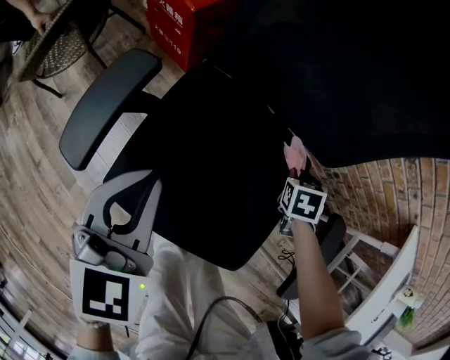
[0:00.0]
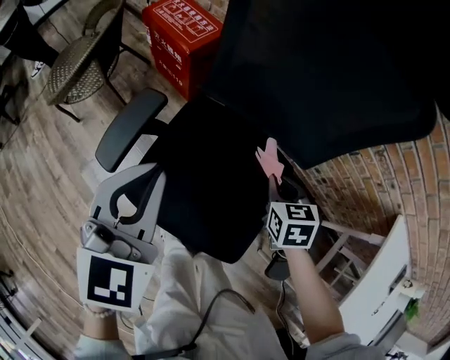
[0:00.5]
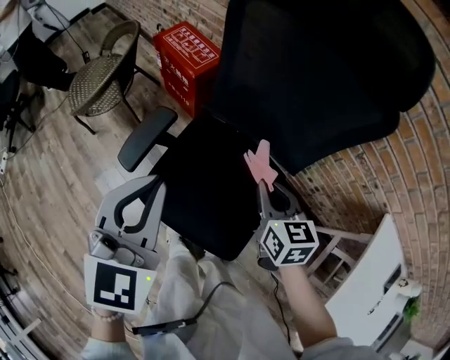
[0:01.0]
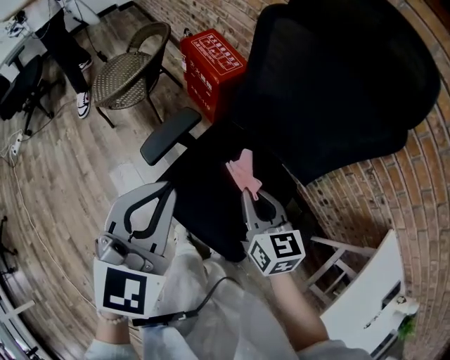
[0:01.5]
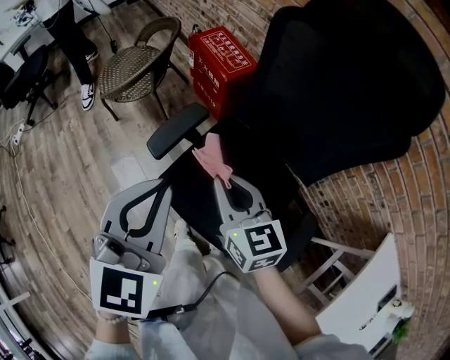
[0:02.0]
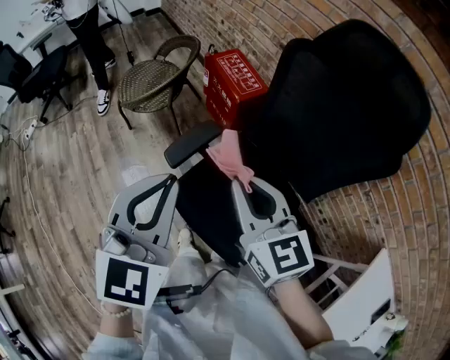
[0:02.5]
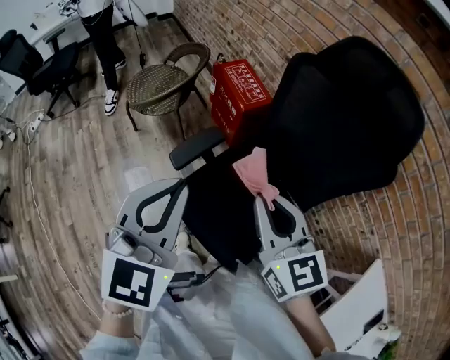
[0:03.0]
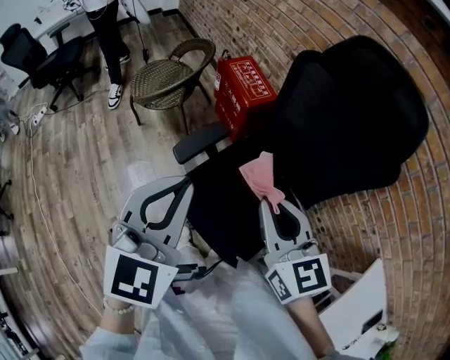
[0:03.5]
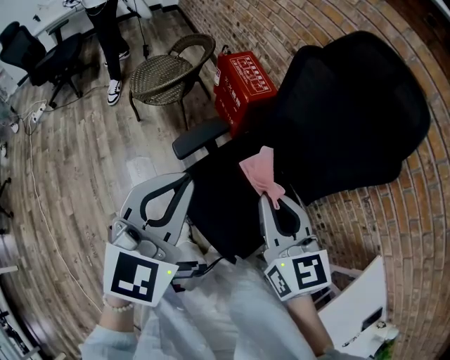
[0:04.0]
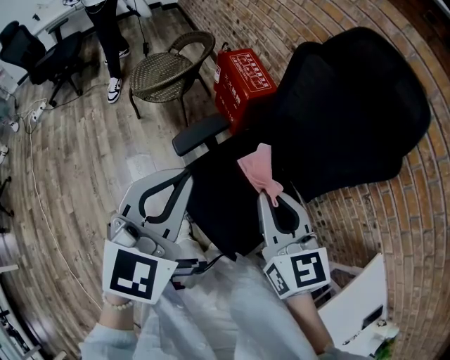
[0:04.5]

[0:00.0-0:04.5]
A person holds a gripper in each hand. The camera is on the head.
0.0 to 2.0 s: The two grippers go about 35 cm upward. The right gripper tips its fingers upward by approximately 50 degrees.
2.0 to 4.5 s: The left gripper is displaced upward by about 5 cm, while the right gripper moves upward and backward, approximately 15 cm.

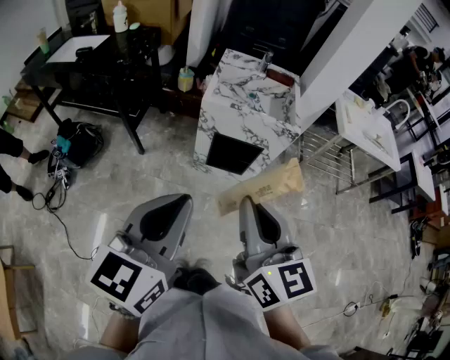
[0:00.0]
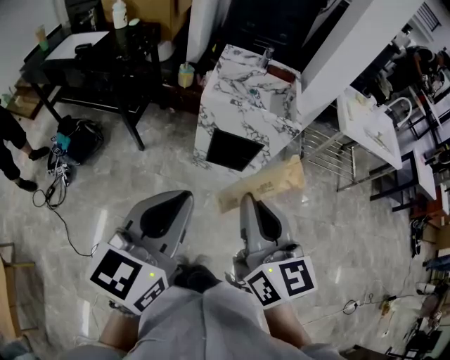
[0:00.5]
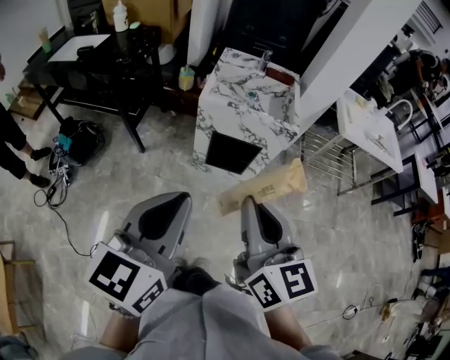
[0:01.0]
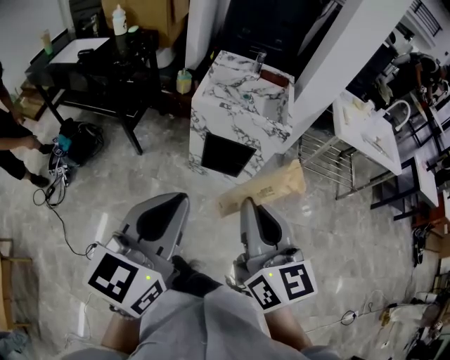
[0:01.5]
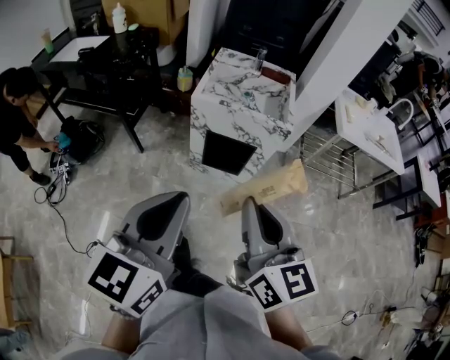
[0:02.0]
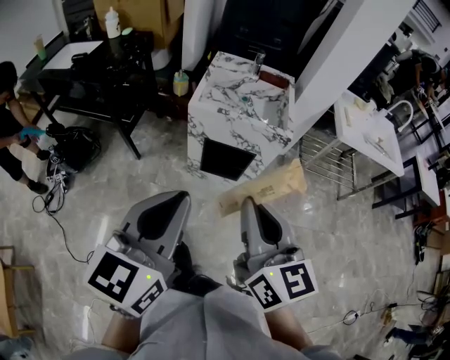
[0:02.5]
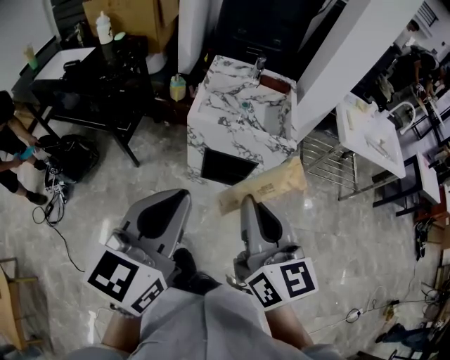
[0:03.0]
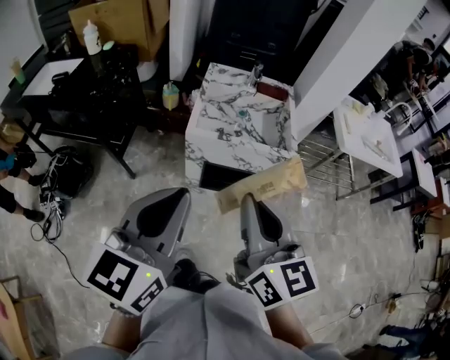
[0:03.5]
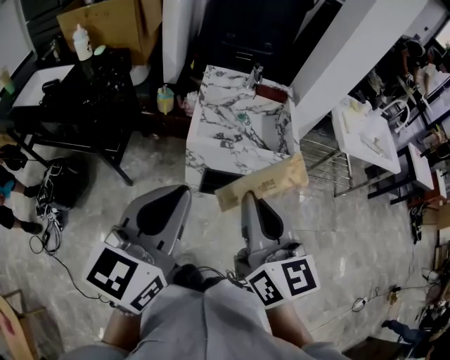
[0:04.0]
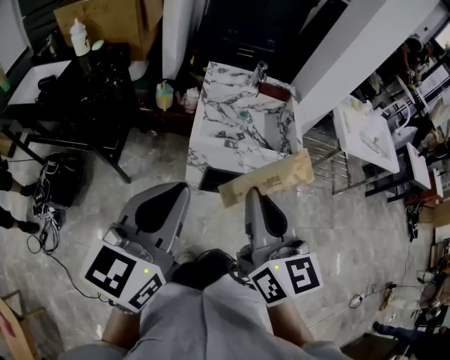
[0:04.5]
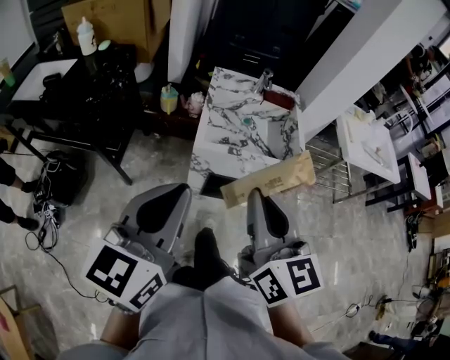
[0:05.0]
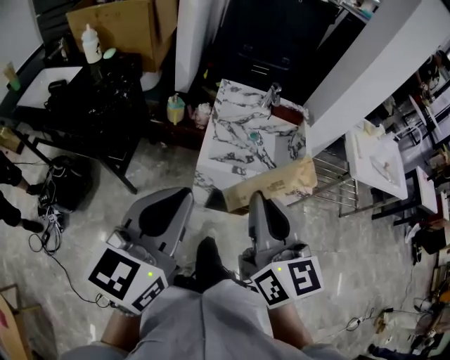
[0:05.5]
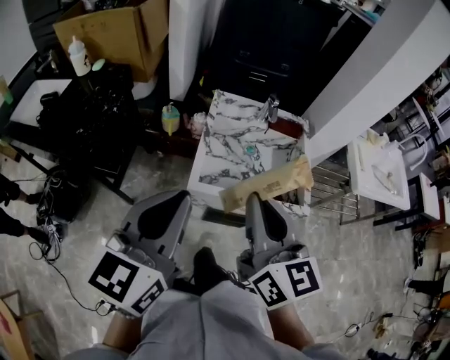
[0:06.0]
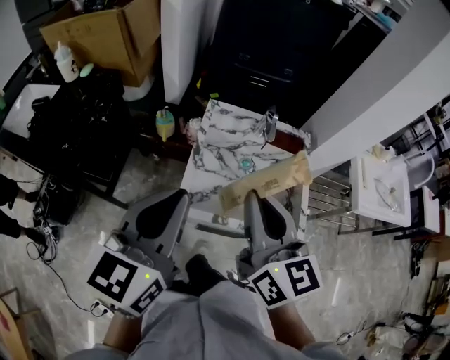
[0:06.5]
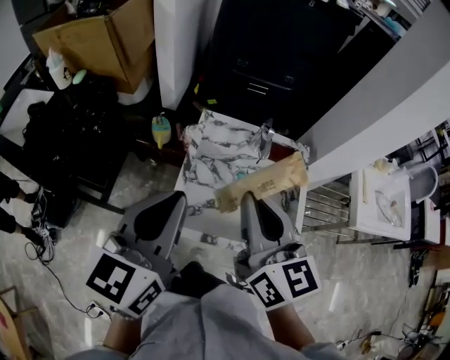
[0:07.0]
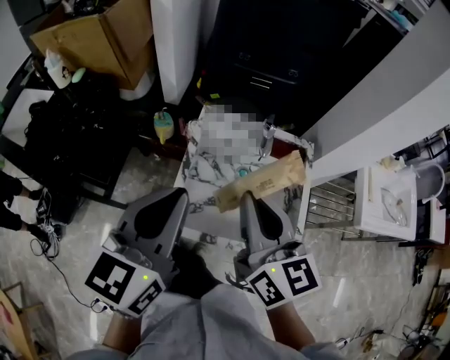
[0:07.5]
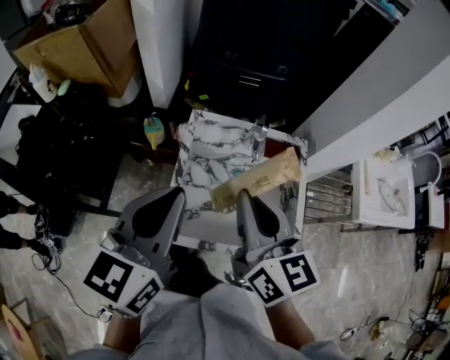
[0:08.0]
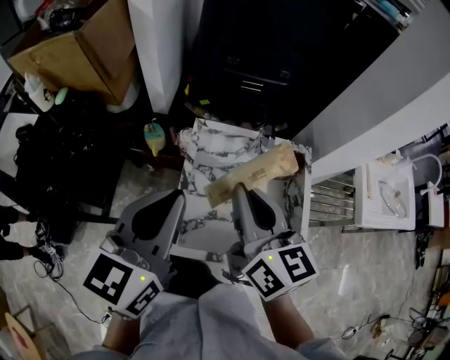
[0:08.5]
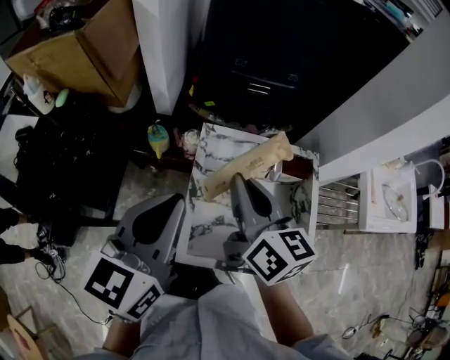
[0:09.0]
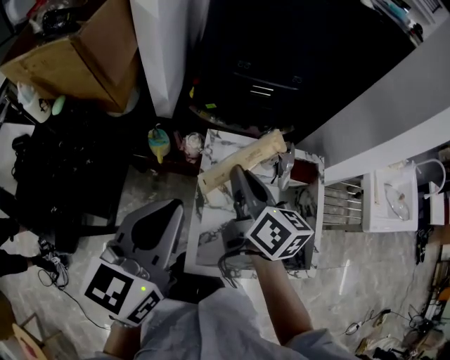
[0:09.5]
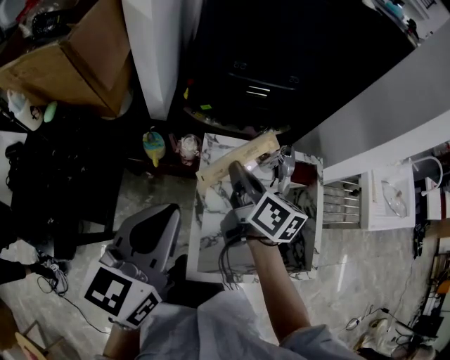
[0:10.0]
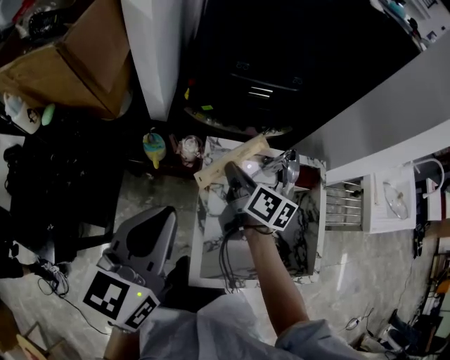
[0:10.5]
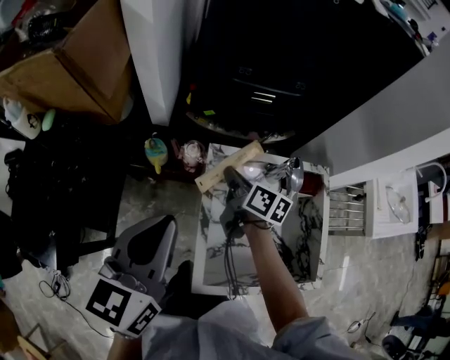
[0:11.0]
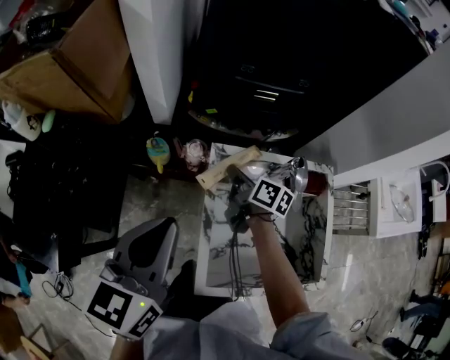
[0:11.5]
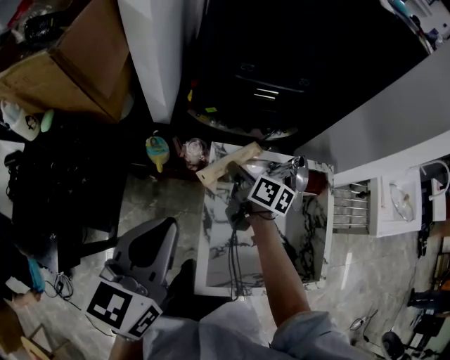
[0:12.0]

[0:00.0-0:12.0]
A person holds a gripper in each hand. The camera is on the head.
0.0 to 2.0 s: Both grippers move to the right, about 10 cm.
2.0 to 4.0 s: Both grippers move forward and to the left, about 25 cm.
4.0 to 6.0 s: Both grippers move forward, about 20 cm.
6.0 to 8.0 s: The grippers both shift forward by about 20 cm.
8.0 to 10.0 s: The right gripper heads forward, downward and to the left, covering roughly 25 cm, and rotates some 30 degrees, while the left gripper shifts about 15 cm to the left and forward.
10.0 to 12.0 s: The right gripper moves downward and forward, some 15 cm.

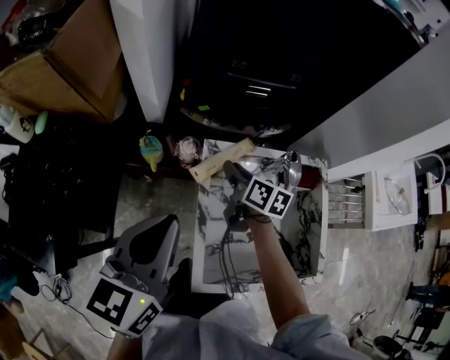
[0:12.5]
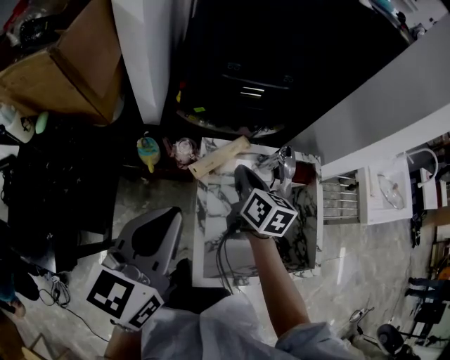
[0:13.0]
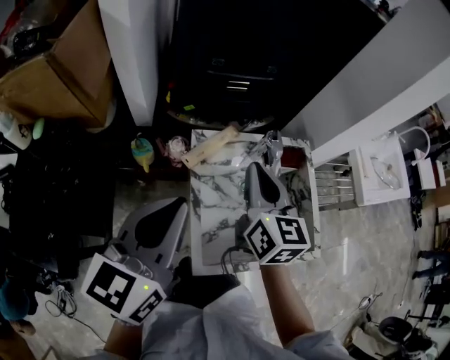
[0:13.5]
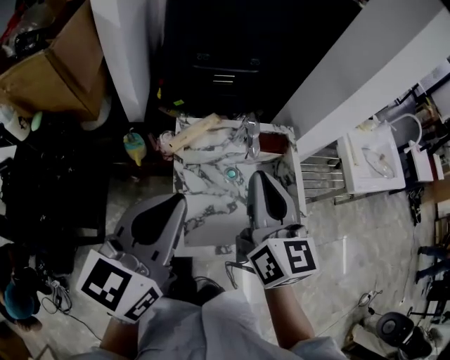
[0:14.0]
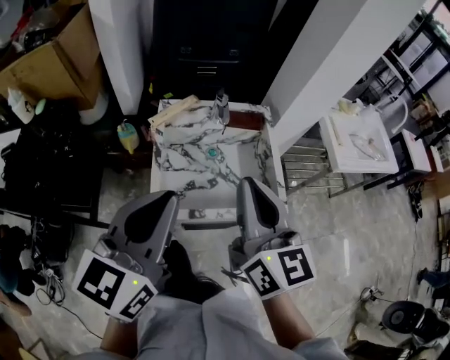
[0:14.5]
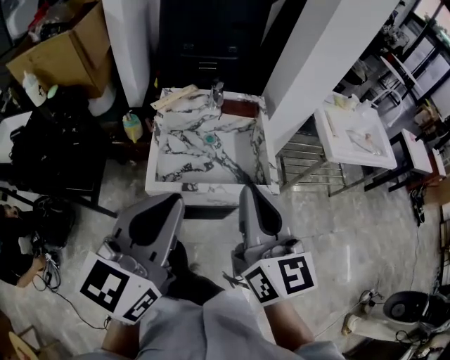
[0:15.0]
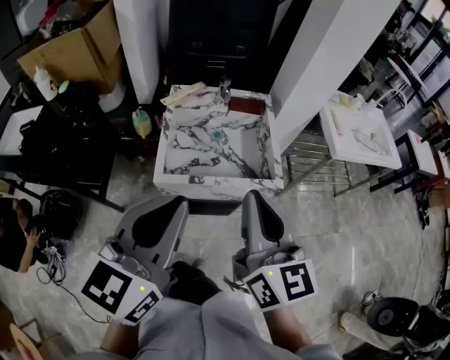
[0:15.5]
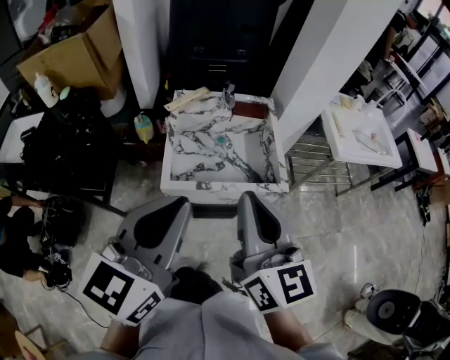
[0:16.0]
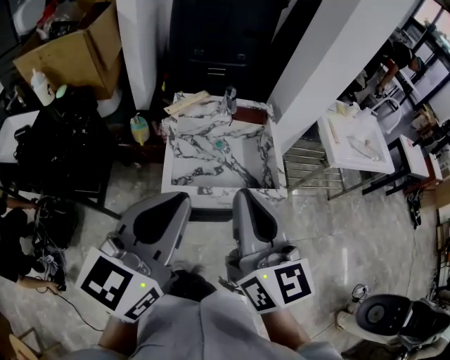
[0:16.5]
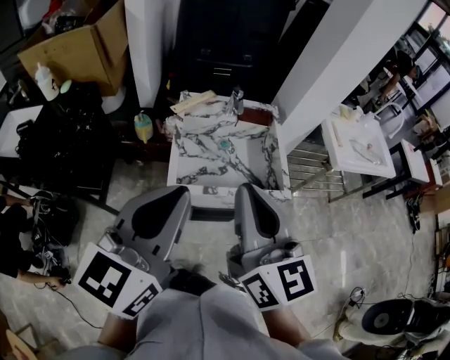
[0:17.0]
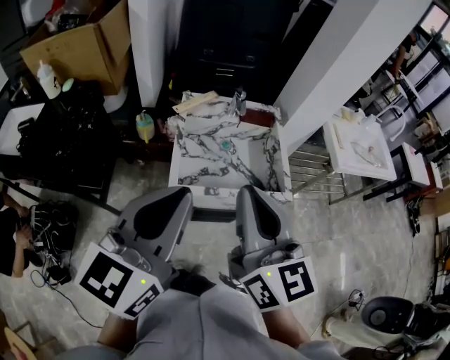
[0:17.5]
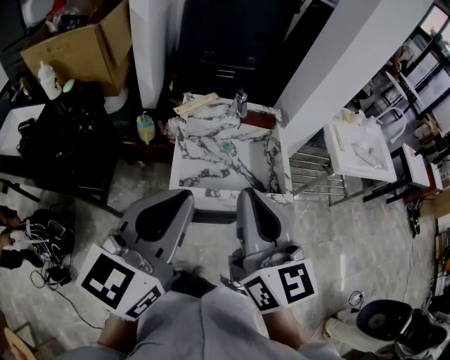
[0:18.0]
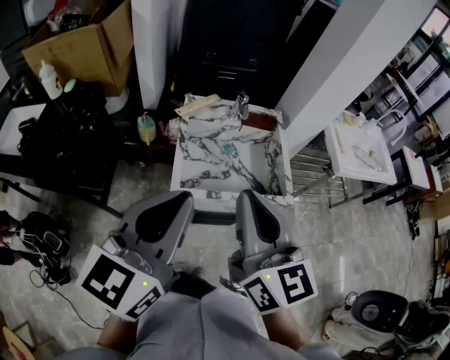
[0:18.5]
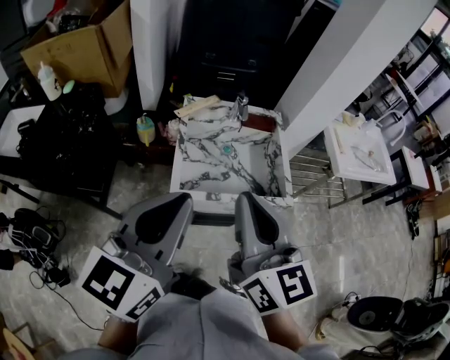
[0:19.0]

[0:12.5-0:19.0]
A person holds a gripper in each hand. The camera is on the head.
12.5 to 14.5 s: The left gripper is displaced backward and to the right by approximately 25 cm; the right gripper goes roughly 50 cm backward, upward and to the right, changes its angle by about 40 degrees, and closes.
14.5 to 17.0 s: The left gripper shifts approximately 10 cm backward; the right gripper is displaced backward and upward by roughly 15 cm.
17.0 to 19.0 s: The grippers stay close to where they were, moving slightly.

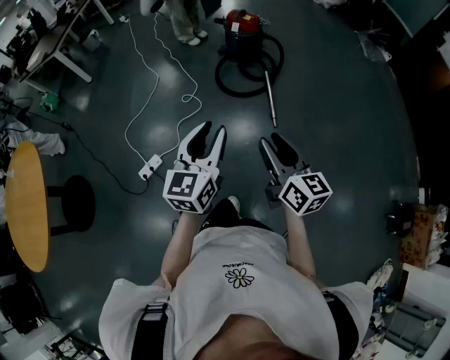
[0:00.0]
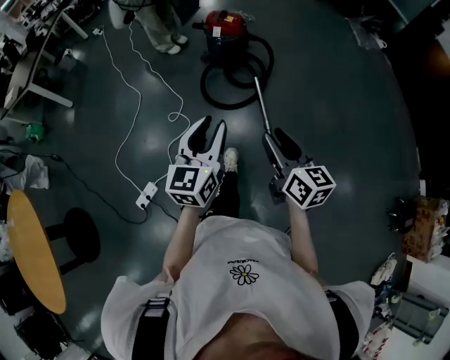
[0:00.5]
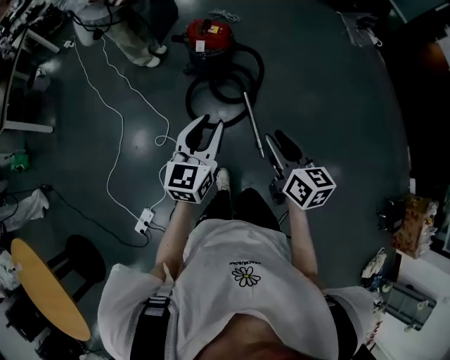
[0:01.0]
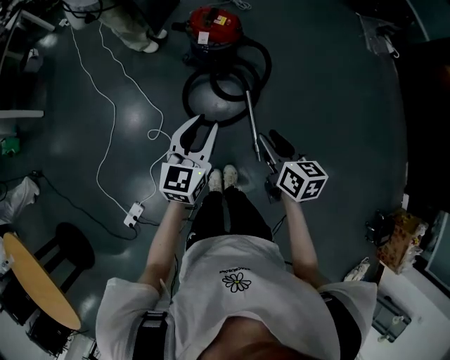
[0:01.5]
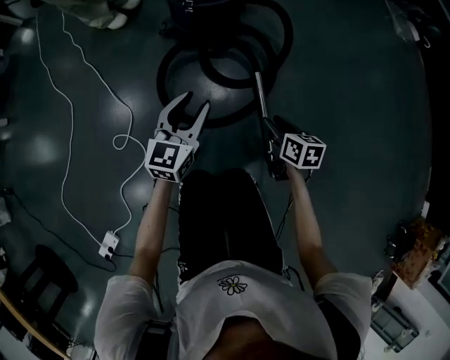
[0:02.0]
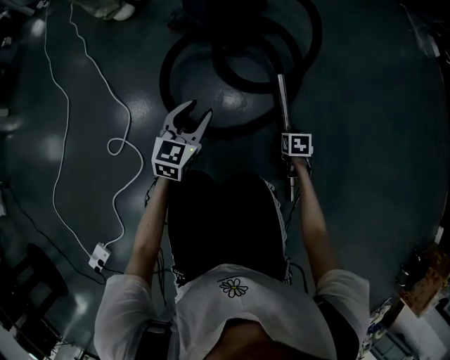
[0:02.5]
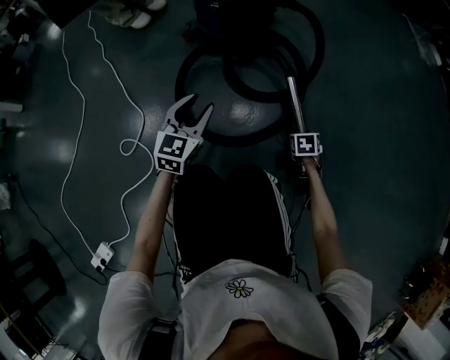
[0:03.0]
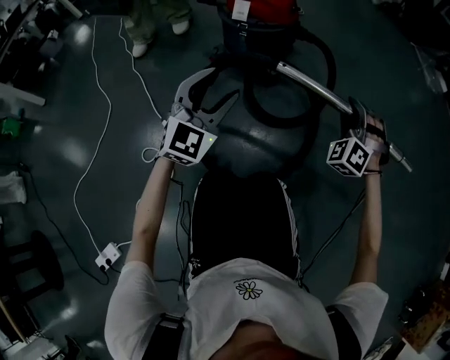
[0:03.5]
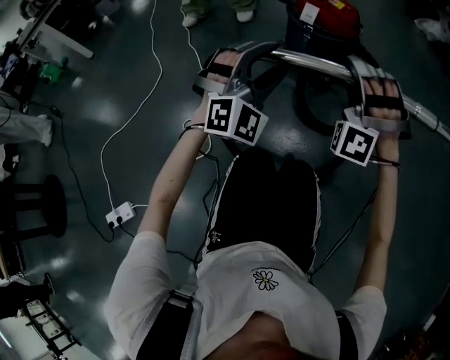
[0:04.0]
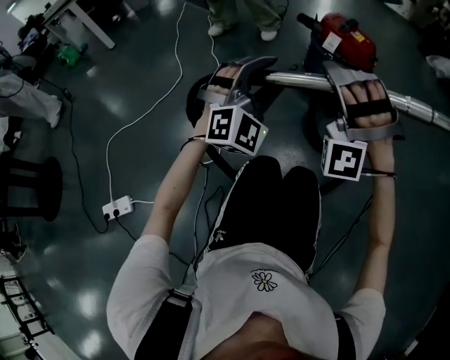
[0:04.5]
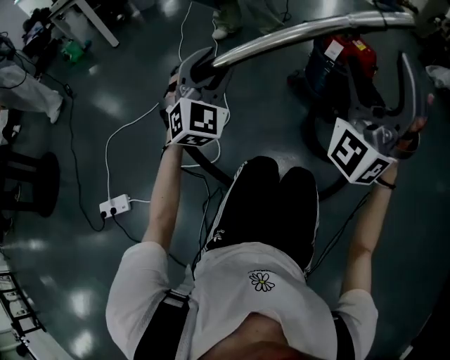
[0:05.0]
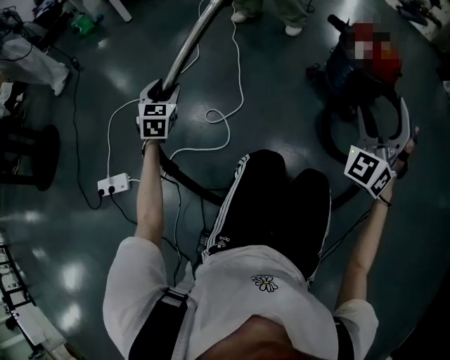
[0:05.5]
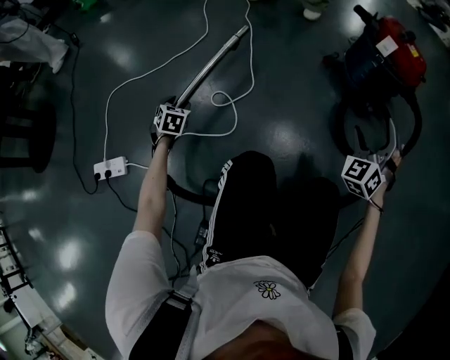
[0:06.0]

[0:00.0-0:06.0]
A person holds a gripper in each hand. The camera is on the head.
0.0 to 2.0 s: The pair of grippers is taken forward, roughly 70 cm. Both grippers move downward, approximately 60 cm. The right gripper tilts its fingers about 30 degrees downward.
2.0 to 4.0 s: The left gripper is displaced to the left by approximately 5 cm, travels downward and back again, about 20 cm each way, and twists some 70 degrees clockwise, seen from behind. Meanwhile the right gripper shifts roughly 25 cm upward, to the left and forward, and rotates around the line of its fingers by about 130 degrees, counterclockwise from behind.
4.0 to 6.0 s: The right gripper travels downward by some 15 cm, swivels roughly 40 degrees, and opens. Meanwhile the left gripper ends up approximately 60 cm from where it was, and tips its fingers downward by some 40 degrees.
